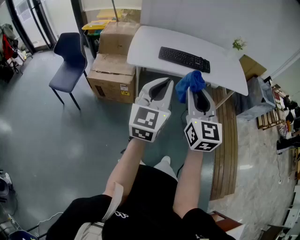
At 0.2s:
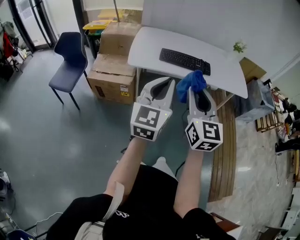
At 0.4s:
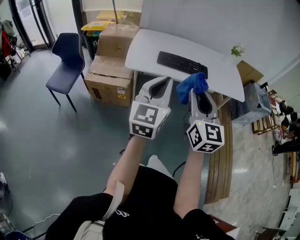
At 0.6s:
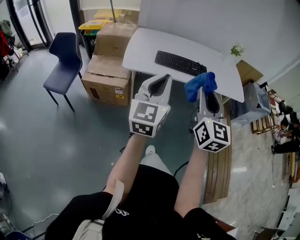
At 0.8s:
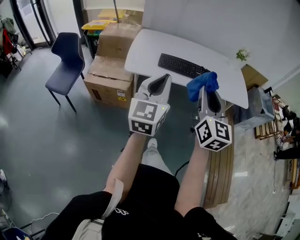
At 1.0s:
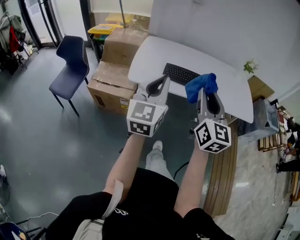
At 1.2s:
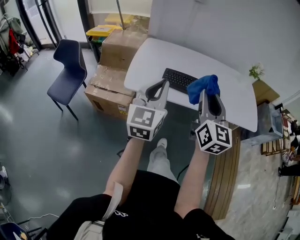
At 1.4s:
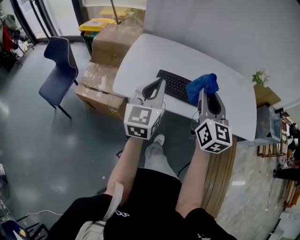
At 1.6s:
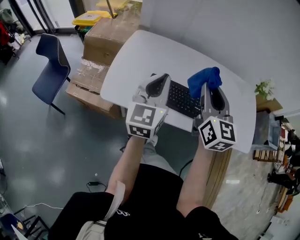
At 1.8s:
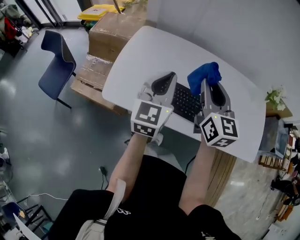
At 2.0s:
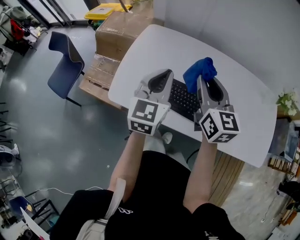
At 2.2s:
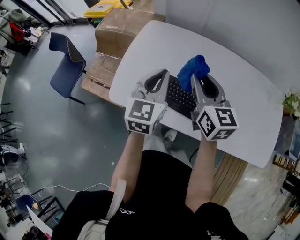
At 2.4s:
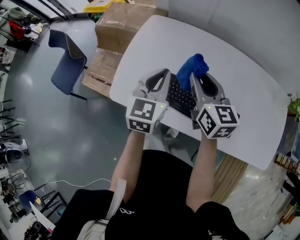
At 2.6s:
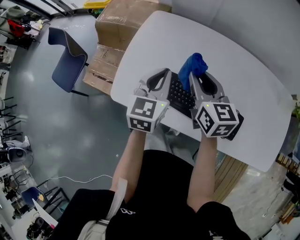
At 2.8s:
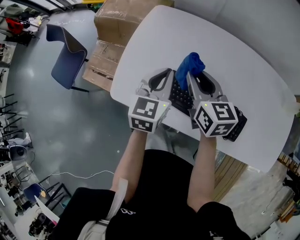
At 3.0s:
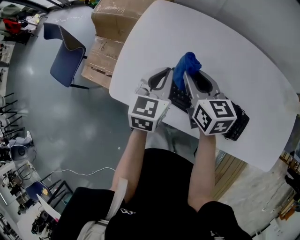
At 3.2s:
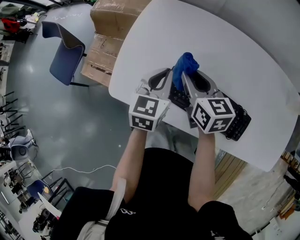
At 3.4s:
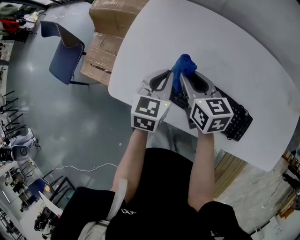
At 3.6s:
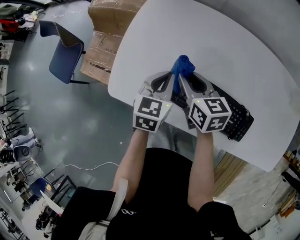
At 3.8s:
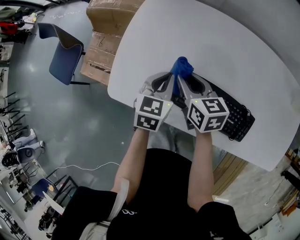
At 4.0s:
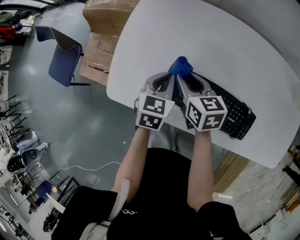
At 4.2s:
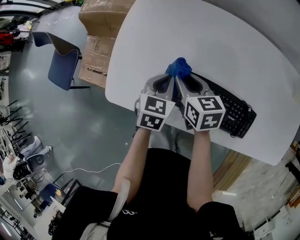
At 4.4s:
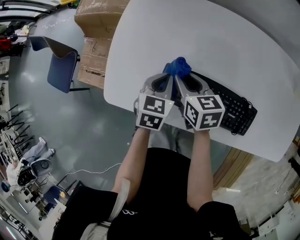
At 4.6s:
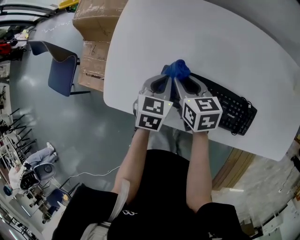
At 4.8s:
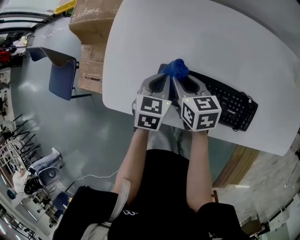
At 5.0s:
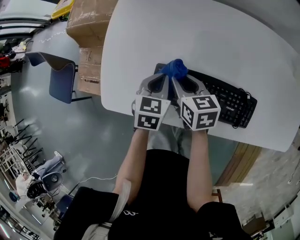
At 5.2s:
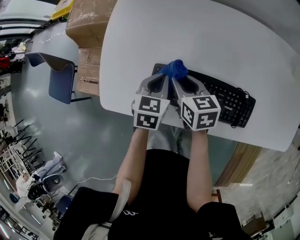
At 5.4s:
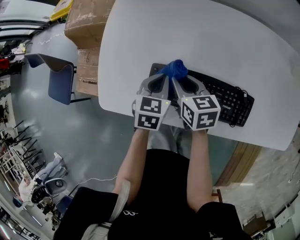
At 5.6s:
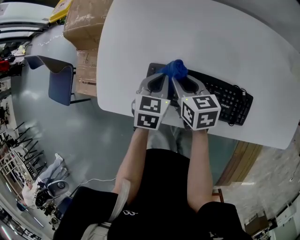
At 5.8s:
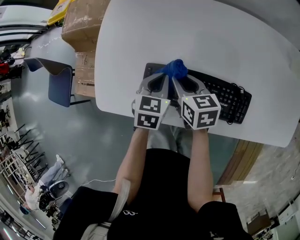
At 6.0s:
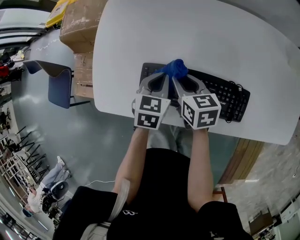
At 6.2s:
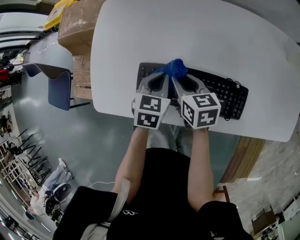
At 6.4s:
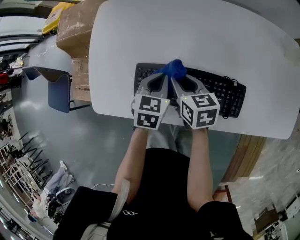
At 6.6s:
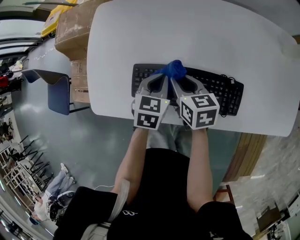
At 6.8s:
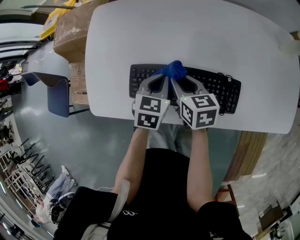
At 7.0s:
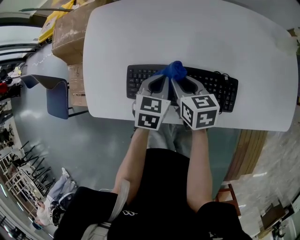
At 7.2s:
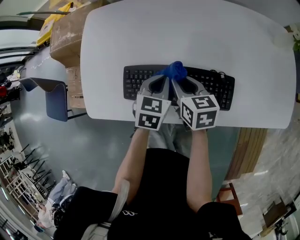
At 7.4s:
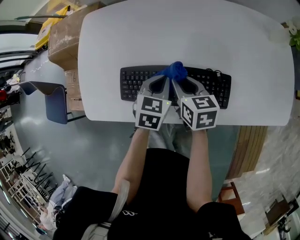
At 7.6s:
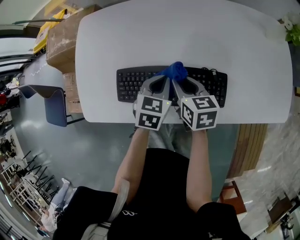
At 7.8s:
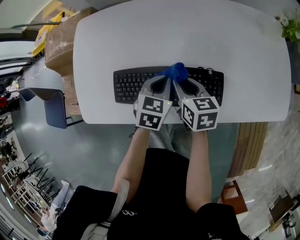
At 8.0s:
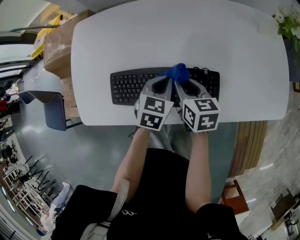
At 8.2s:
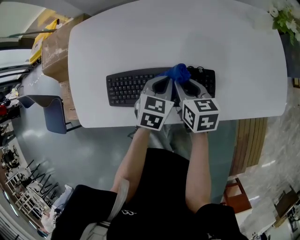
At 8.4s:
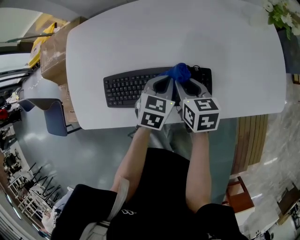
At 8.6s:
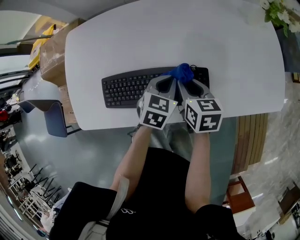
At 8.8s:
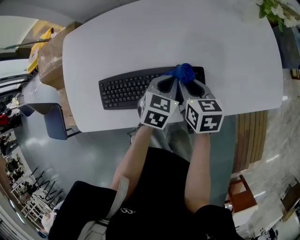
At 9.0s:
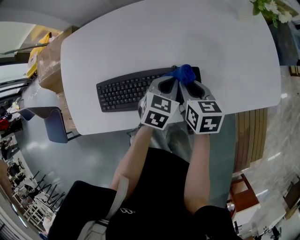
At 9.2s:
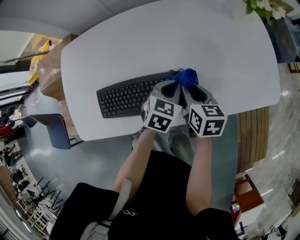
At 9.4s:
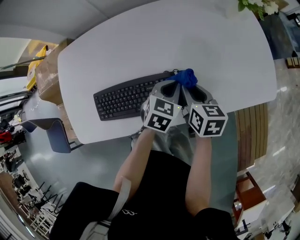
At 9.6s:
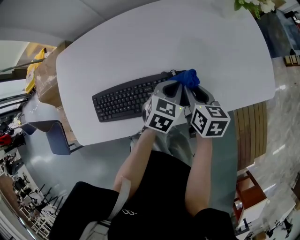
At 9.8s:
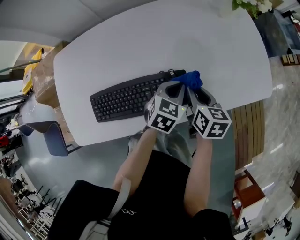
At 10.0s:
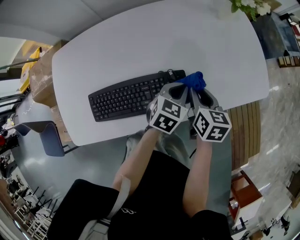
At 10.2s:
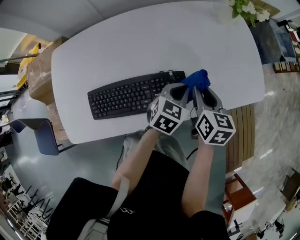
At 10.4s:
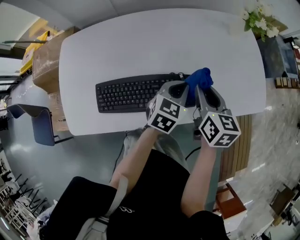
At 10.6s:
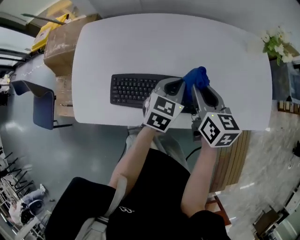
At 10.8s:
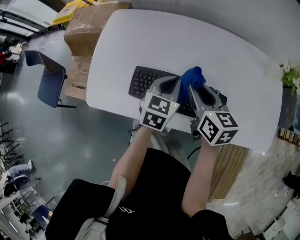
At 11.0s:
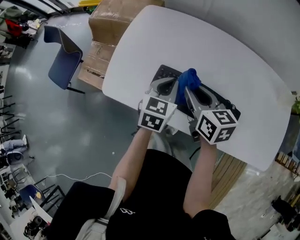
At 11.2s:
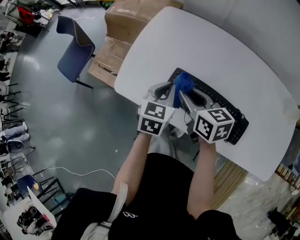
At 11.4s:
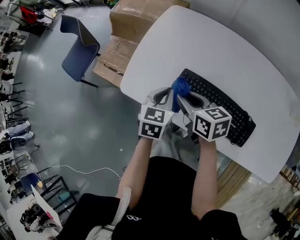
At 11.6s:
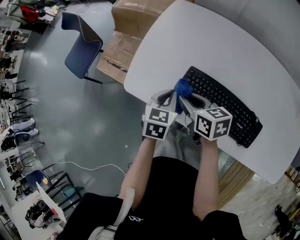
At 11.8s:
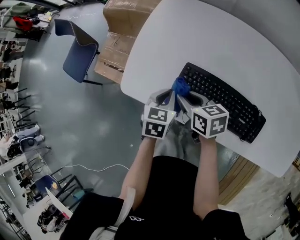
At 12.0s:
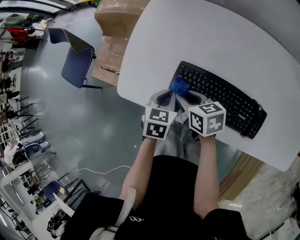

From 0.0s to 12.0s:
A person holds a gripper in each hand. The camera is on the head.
From 0.0s to 1.6s: Both grippers are carried forward, some 50 cm.
From 1.6s to 3.0s: The left gripper heads downward and forward, covering roughly 20 cm, and turns by approximately 30 degrees. The right gripper is displaced downward, forward and to the left by about 25 cm, and rotates roughly 40 degrees.
From 3.0s to 4.4s: Both grippers travel together downward, roughly 10 cm.
From 4.4s to 6.0s: The two grippers go some 5 cm to the right.
From 6.0s to 7.6s: The grippers both shift to the right by some 10 cm.
From 7.6s to 9.0s: The two grippers go some 15 cm to the right.
From 9.0s to 10.4s: The right gripper heads upward and to the right, covering some 10 cm; the left gripper is displaced upward by some 5 cm.
From 10.4s to 12.0s: The left gripper moves roughly 40 cm, and changes its angle by roughly 50 degrees, while the right gripper moves some 40 cm, and rotates roughly 60 degrees.

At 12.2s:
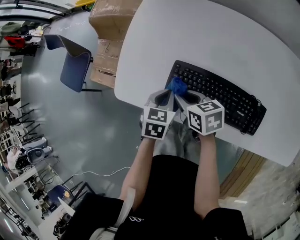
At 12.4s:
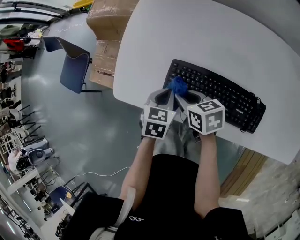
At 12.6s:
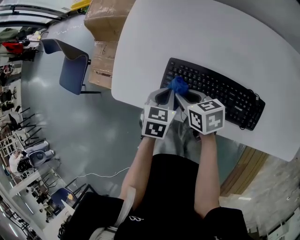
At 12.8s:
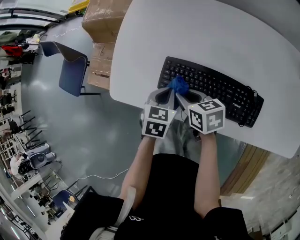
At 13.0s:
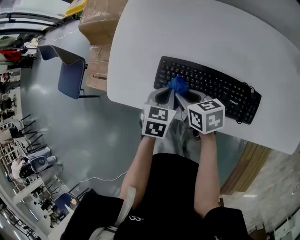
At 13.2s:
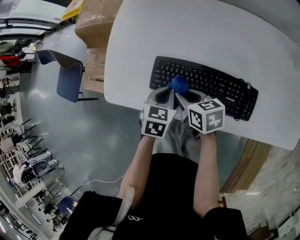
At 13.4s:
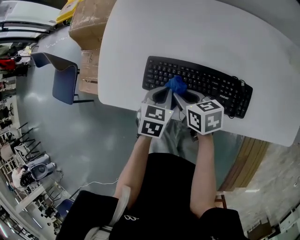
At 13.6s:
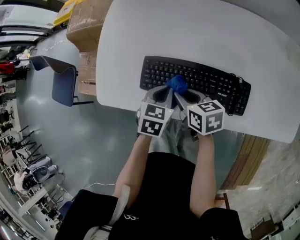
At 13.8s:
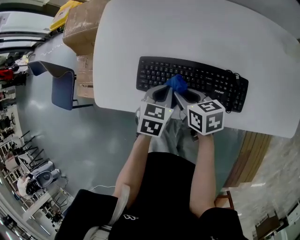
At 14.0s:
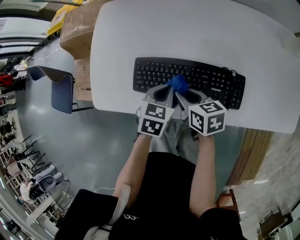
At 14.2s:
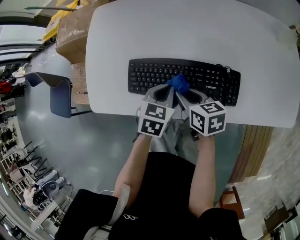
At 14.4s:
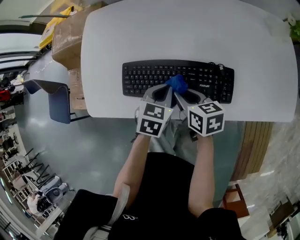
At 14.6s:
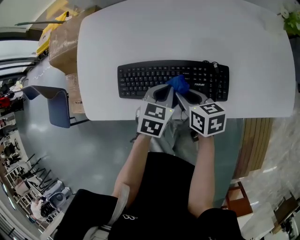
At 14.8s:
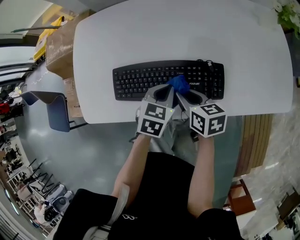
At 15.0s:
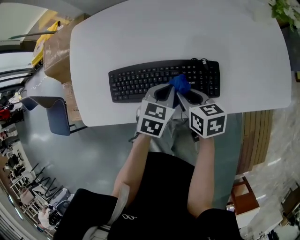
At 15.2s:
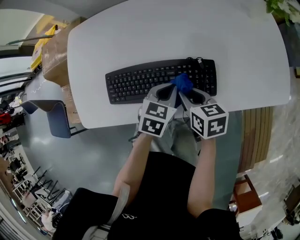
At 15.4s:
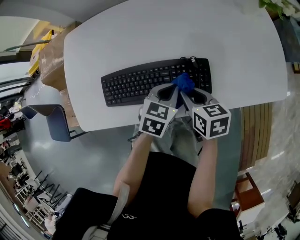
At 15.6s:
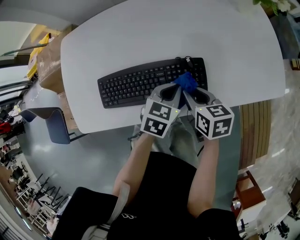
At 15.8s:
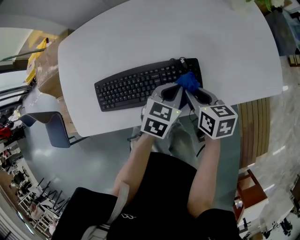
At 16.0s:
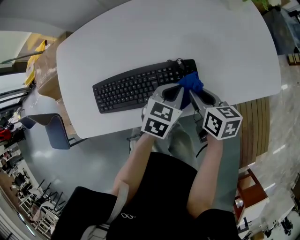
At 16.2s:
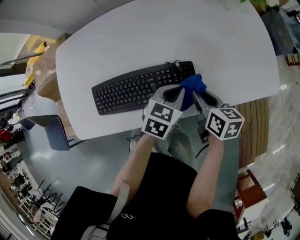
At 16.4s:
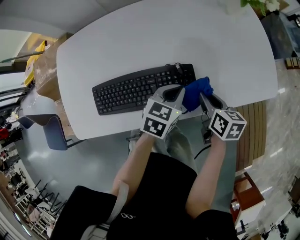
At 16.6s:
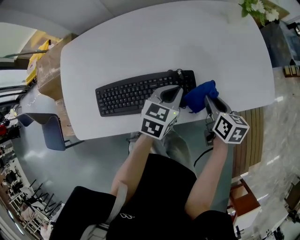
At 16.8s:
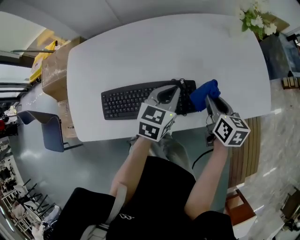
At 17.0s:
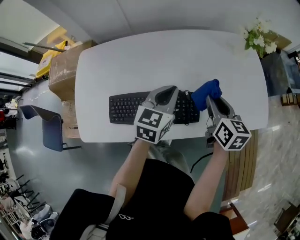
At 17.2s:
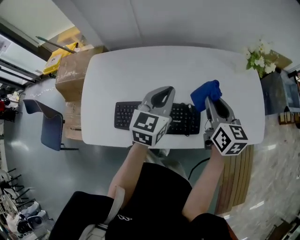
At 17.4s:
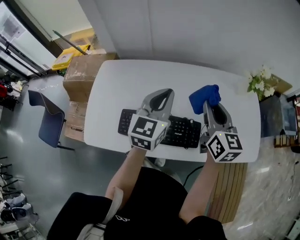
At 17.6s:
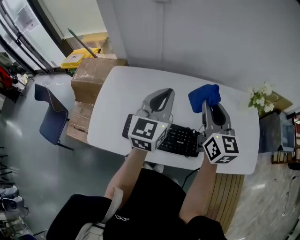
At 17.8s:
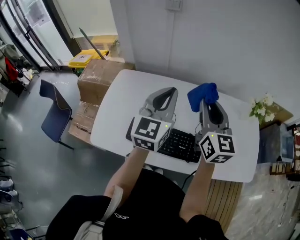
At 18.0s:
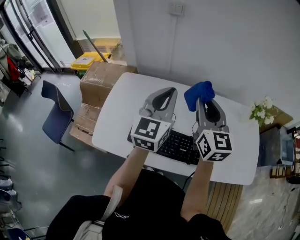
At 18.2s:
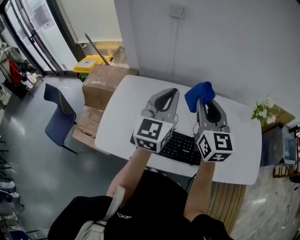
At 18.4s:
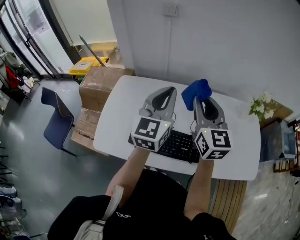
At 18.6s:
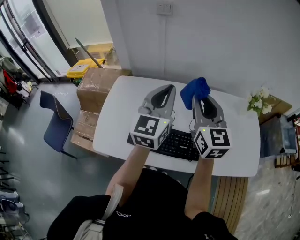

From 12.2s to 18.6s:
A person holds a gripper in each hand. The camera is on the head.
From 12.2s to 13.8s: Both grippers travel together to the right, some 10 cm.
From 13.8s to 15.4s: Both grippers move to the right, about 15 cm. The right gripper swivels about 20 degrees, while the left gripper swivels about 20 degrees.
From 15.4s to 17.0s: The left gripper heads upward and forward, covering approximately 15 cm, and changes its angle by approximately 20 degrees. Meanwhile the right gripper moves upward, to the right and forward, some 20 cm, and turns by some 20 degrees.
From 17.0s to 18.6s: Both grippers travel together upward and to the left, roughly 25 cm. The left gripper swivels roughly 40 degrees, while the right gripper turns by about 40 degrees.

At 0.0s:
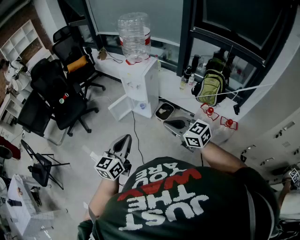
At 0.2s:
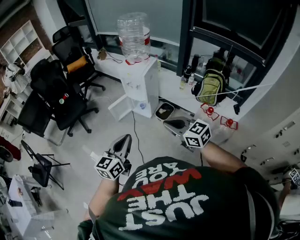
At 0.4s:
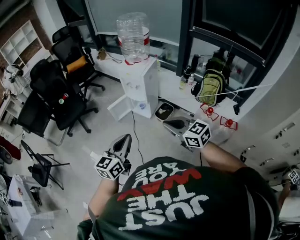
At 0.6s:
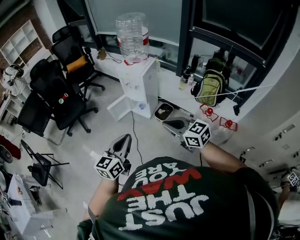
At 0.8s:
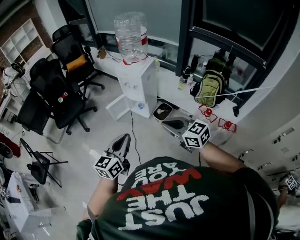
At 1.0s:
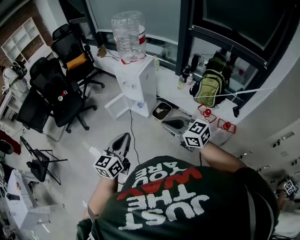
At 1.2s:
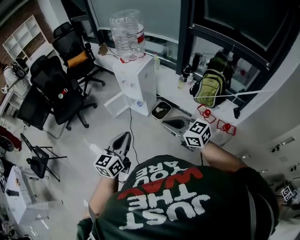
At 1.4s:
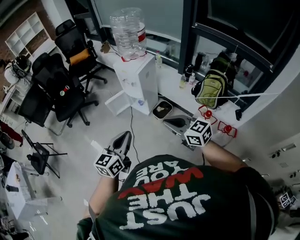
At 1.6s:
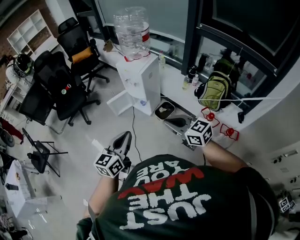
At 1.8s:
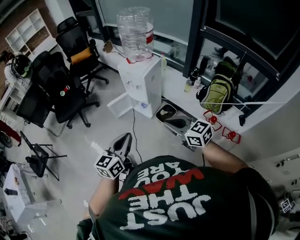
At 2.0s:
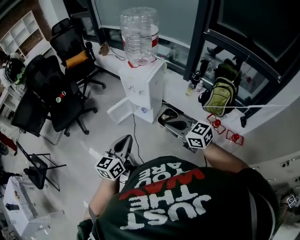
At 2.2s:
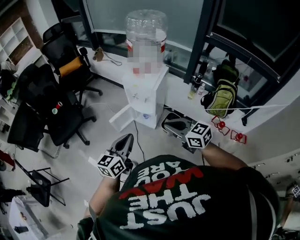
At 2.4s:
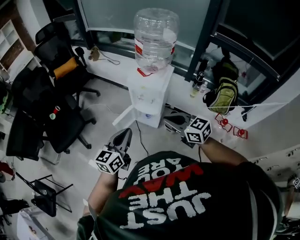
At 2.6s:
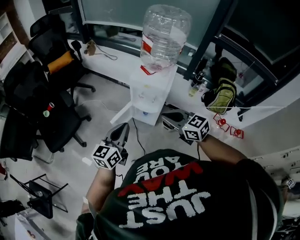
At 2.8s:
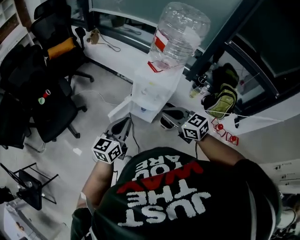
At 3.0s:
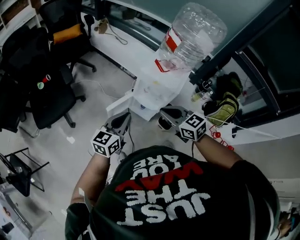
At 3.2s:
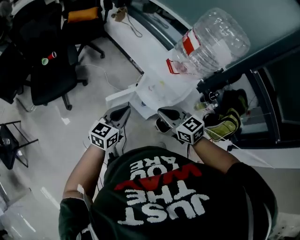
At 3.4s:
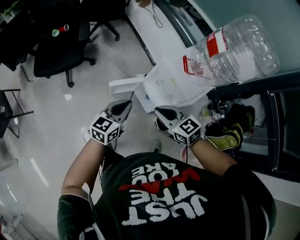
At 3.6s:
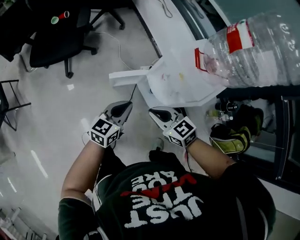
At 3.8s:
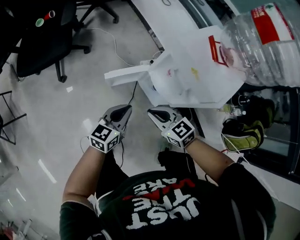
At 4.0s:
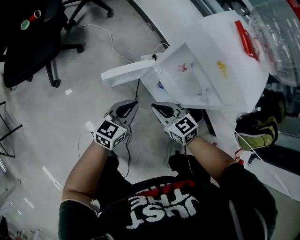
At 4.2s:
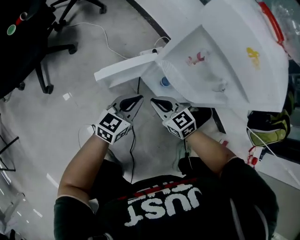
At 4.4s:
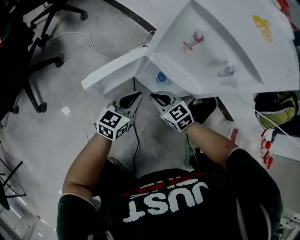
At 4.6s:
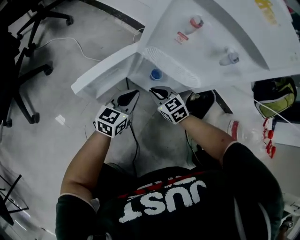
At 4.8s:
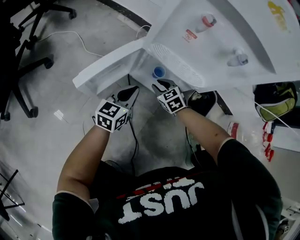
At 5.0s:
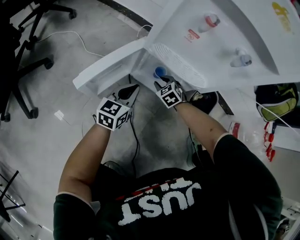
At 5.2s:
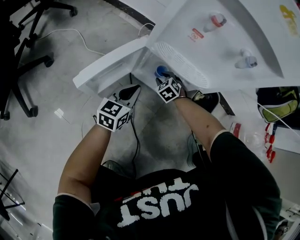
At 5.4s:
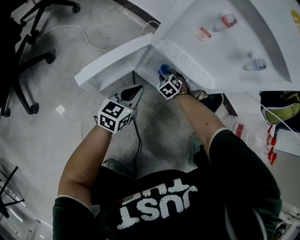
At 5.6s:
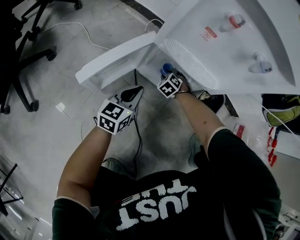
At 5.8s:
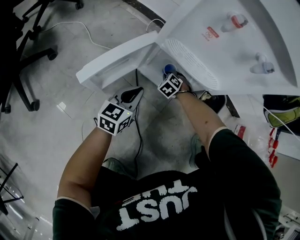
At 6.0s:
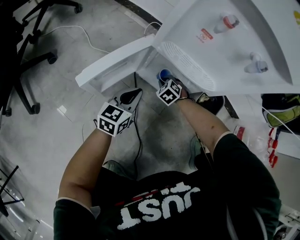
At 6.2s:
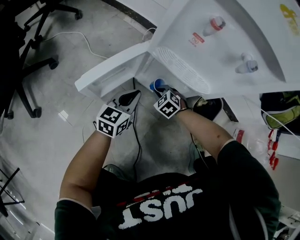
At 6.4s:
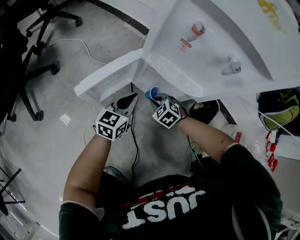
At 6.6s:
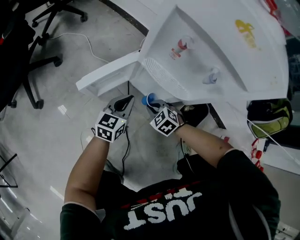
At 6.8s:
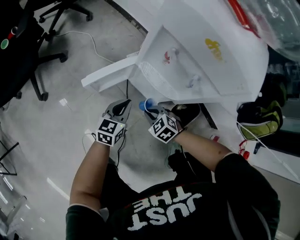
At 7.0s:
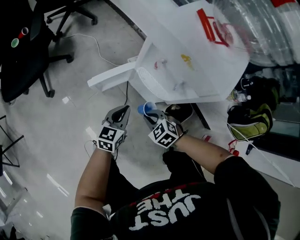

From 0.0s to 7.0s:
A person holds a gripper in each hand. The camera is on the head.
From 0.0s to 1.4s: The two grippers go about 10 cm to the right.
From 1.4s to 2.8s: Both grippers are carried forward and to the left, roughly 50 cm.
From 2.8s to 4.2s: Both grippers move downward, some 60 cm.
From 4.2s to 5.6s: The left gripper heads downward, covering about 15 cm, while the right gripper goes roughly 30 cm downward, swivels some 50 degrees, and opens up.
From 5.6s to 7.0s: The left gripper shifts some 25 cm upward, and turns by some 20 degrees. Meanwhile the right gripper goes approximately 40 cm upward, rotates about 30 degrees, and closes.
